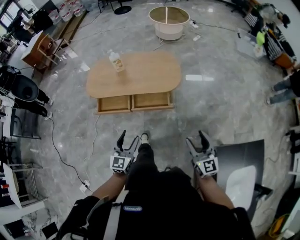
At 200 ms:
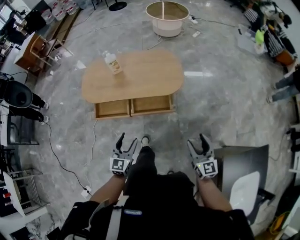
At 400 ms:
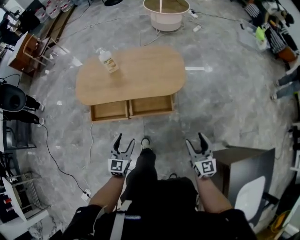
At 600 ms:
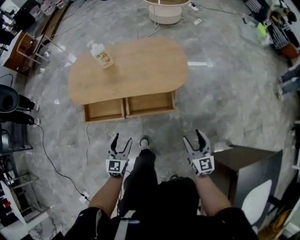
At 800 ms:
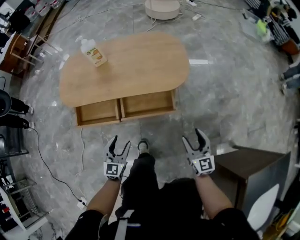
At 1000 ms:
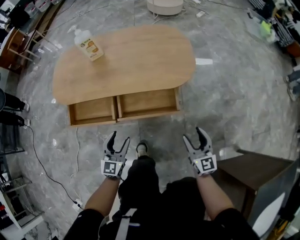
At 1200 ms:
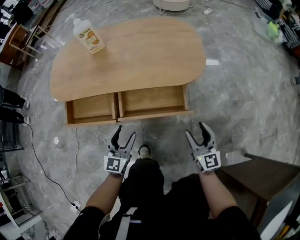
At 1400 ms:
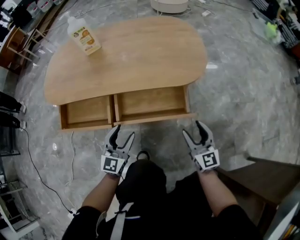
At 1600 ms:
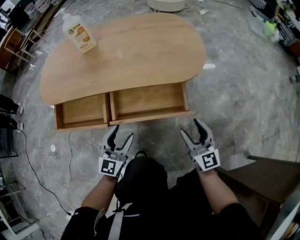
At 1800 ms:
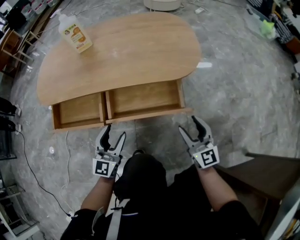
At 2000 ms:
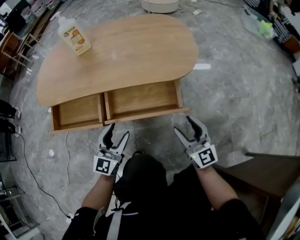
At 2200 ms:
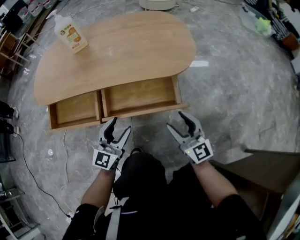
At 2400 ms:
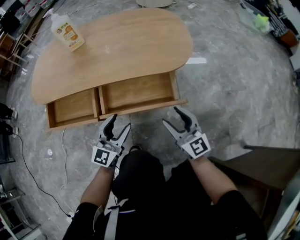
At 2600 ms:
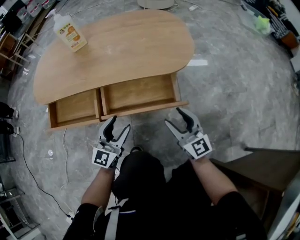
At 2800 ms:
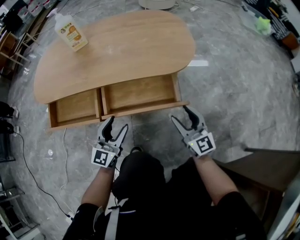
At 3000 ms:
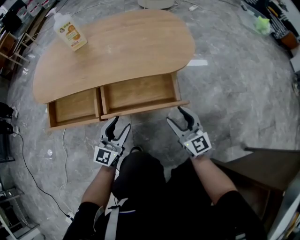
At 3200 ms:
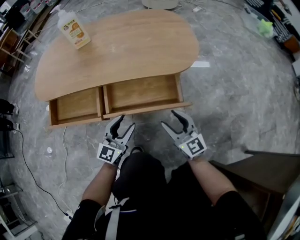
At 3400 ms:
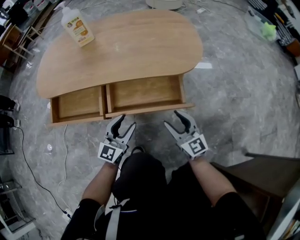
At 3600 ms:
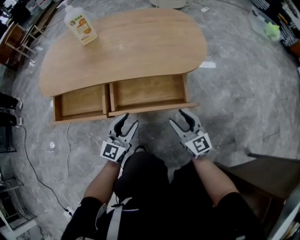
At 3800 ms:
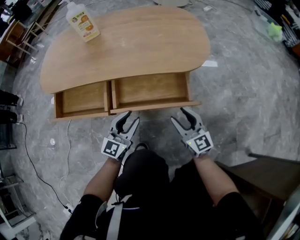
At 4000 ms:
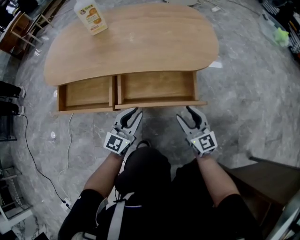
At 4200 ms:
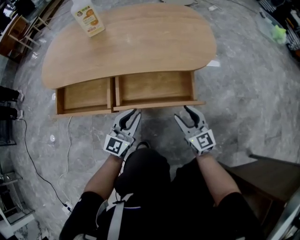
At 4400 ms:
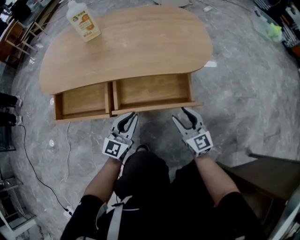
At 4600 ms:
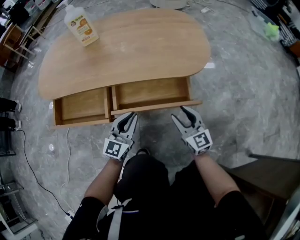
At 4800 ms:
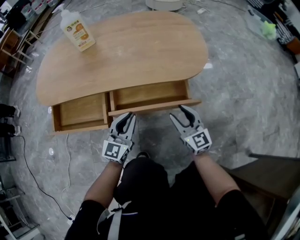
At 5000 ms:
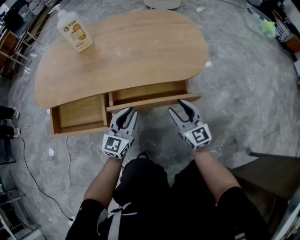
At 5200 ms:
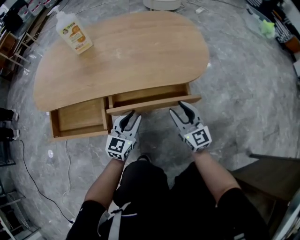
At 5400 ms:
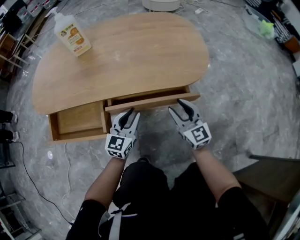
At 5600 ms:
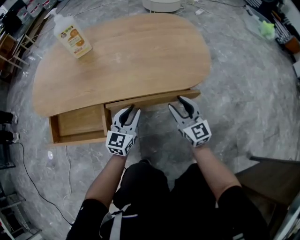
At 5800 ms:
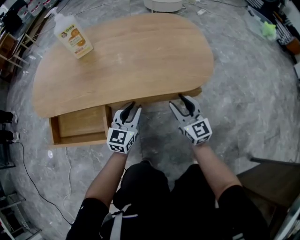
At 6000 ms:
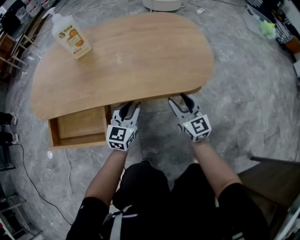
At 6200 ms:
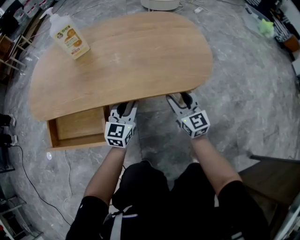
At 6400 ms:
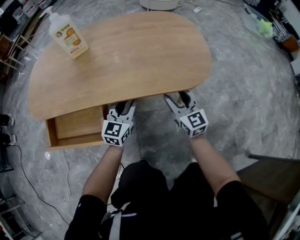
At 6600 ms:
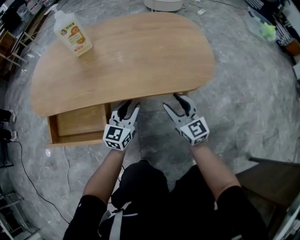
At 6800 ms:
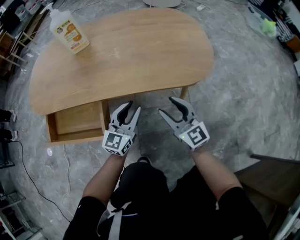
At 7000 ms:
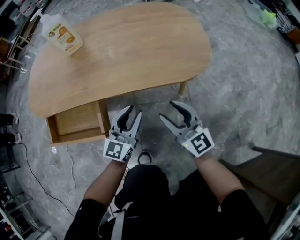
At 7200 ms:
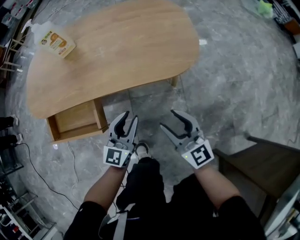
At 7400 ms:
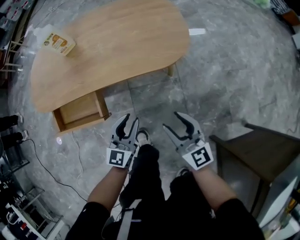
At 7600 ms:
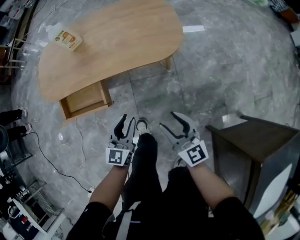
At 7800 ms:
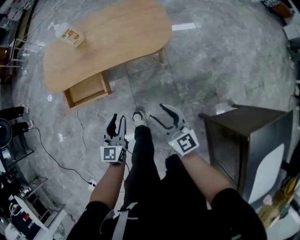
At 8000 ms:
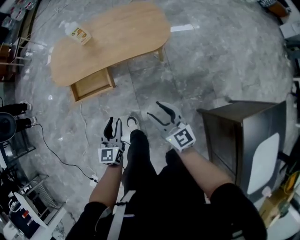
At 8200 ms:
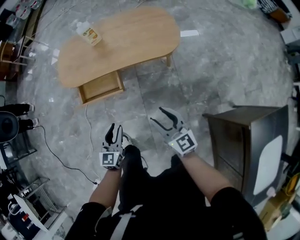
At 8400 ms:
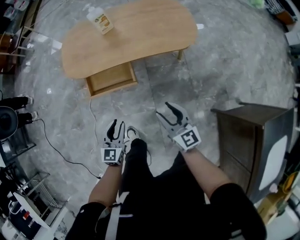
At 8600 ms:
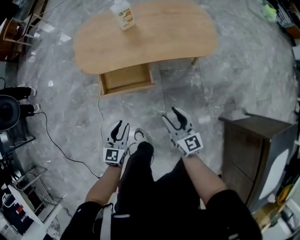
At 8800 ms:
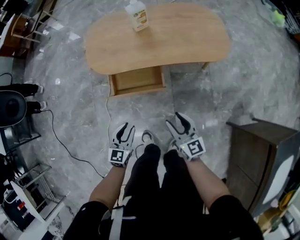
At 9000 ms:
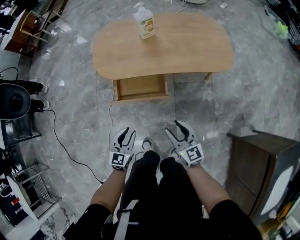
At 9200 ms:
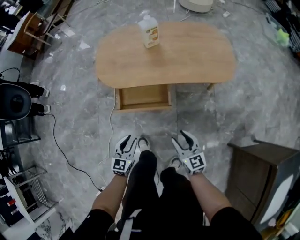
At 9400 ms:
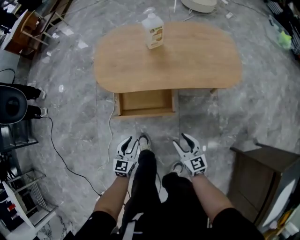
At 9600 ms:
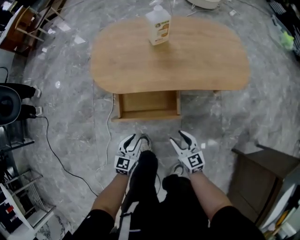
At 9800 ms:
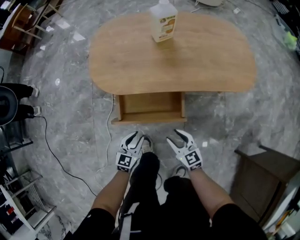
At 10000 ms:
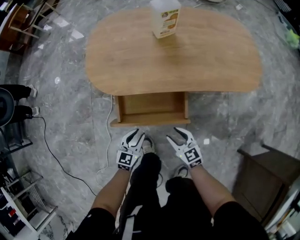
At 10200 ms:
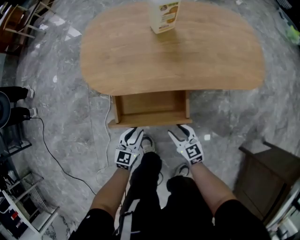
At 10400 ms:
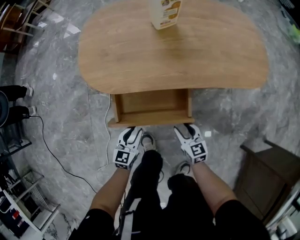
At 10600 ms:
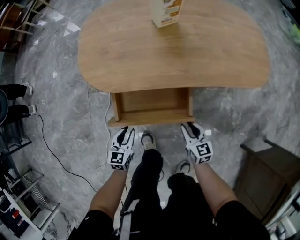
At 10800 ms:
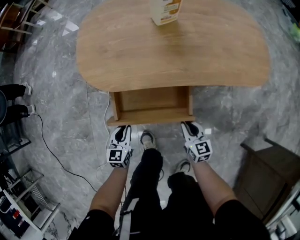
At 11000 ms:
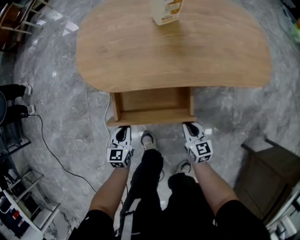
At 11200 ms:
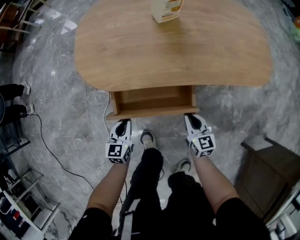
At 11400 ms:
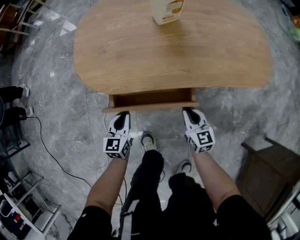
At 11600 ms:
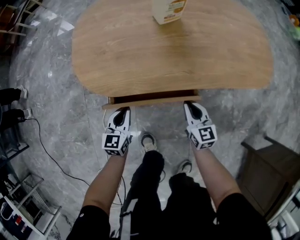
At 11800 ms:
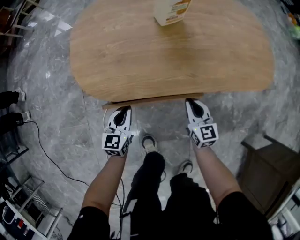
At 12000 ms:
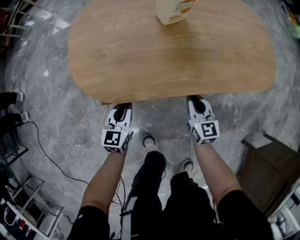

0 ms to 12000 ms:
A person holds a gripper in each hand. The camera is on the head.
0 ms to 1600 ms: The grippers both shift downward and forward by about 50 cm.
1600 ms to 3000 ms: There are only small adjustments of the grippers.
3000 ms to 4400 ms: The left gripper closes up; the right gripper is displaced downward by some 5 cm.
4400 ms to 6000 ms: The two grippers go approximately 15 cm forward.
6000 ms to 7600 ms: Both grippers travel together backward and upward, some 30 cm.
7600 ms to 9000 ms: The two grippers go some 35 cm to the left.
9000 ms to 10400 ms: Both grippers travel together downward and forward, about 30 cm. The right gripper swivels approximately 20 degrees.
10400 ms to 12000 ms: Both grippers move forward, about 15 cm. The left gripper closes up. Meanwhile the right gripper closes its fingers.

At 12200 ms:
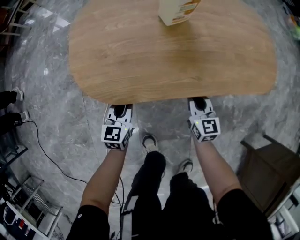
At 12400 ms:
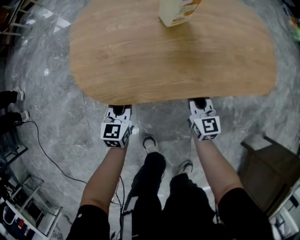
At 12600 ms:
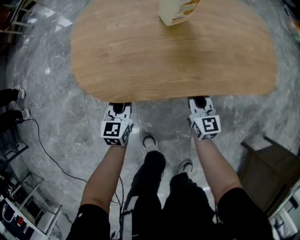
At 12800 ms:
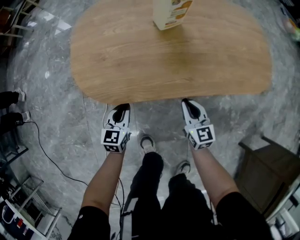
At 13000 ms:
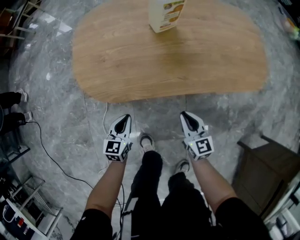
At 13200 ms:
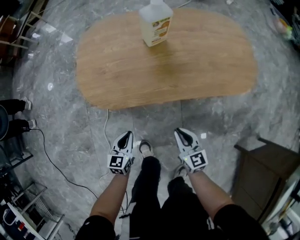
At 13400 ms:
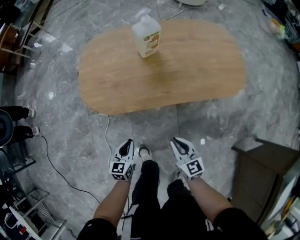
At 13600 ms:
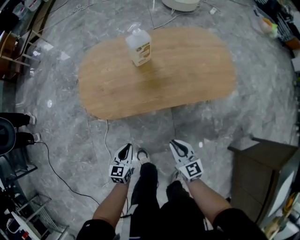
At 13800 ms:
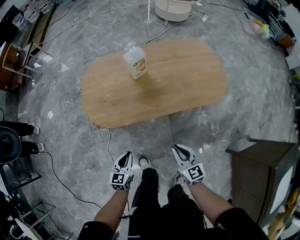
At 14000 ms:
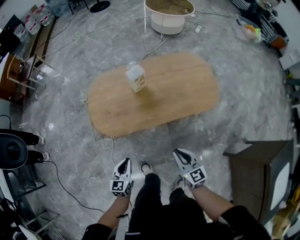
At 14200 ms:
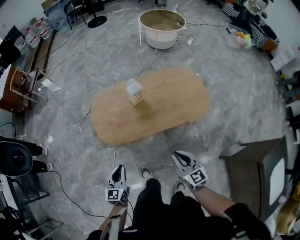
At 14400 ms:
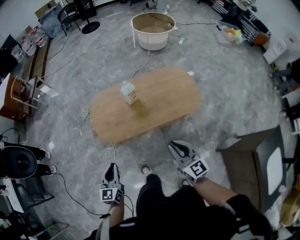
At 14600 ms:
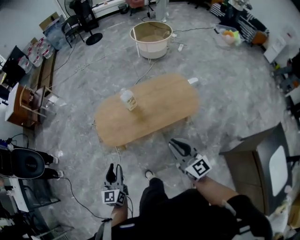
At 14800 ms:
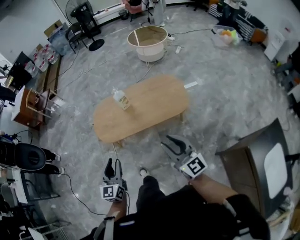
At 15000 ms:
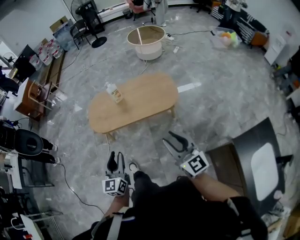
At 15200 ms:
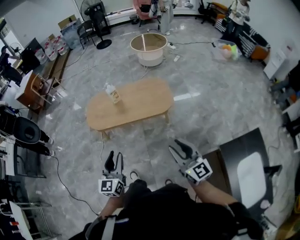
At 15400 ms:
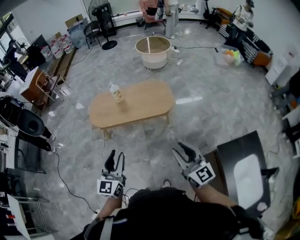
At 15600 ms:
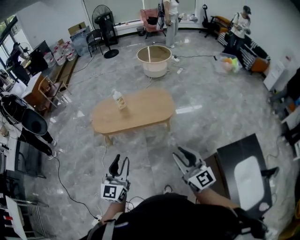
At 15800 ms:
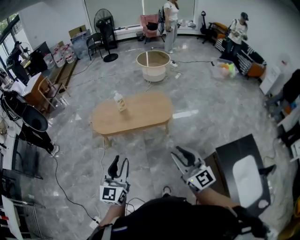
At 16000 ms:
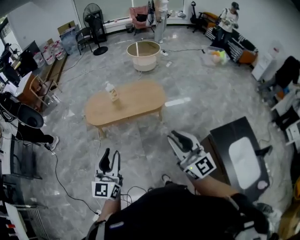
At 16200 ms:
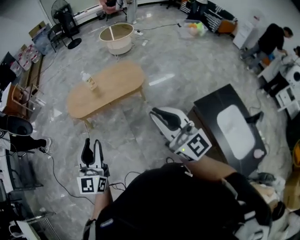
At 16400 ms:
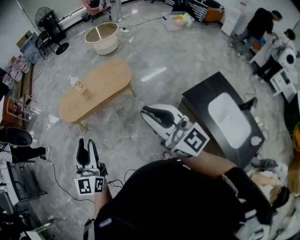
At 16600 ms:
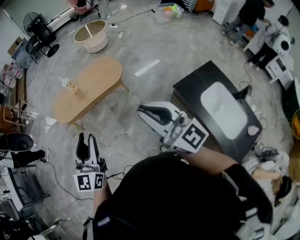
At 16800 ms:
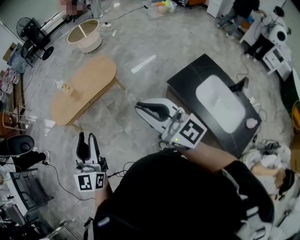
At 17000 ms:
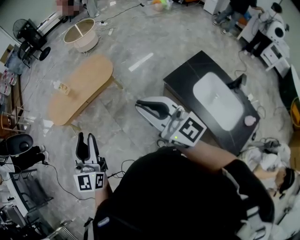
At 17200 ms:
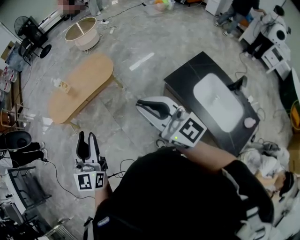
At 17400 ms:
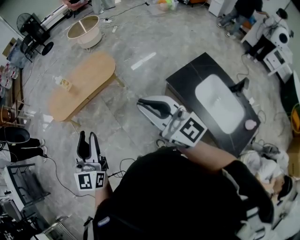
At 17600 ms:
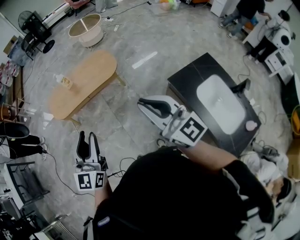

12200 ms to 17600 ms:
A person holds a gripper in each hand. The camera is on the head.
12200 ms to 13600 ms: Both grippers travel together backward and upward, approximately 25 cm.
13600 ms to 15000 ms: The left gripper travels upward and backward by approximately 50 cm, rotates approximately 30 degrees, and opens. Meanwhile the right gripper is displaced upward, to the right and backward by some 60 cm, points its fingers some 30 degrees further upward, and opens its fingers.
15000 ms to 16200 ms: The grippers both shift backward and upward by approximately 30 cm.
16200 ms to 17600 ms: Both grippers travel together to the right, roughly 15 cm.

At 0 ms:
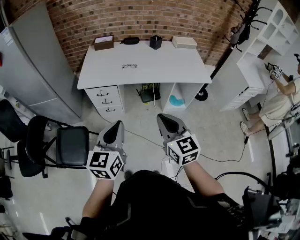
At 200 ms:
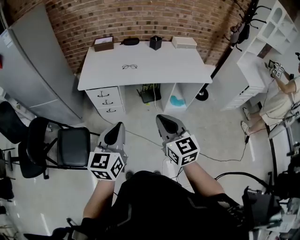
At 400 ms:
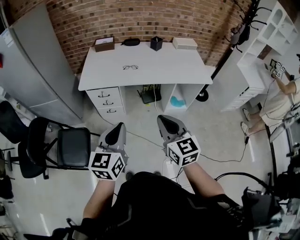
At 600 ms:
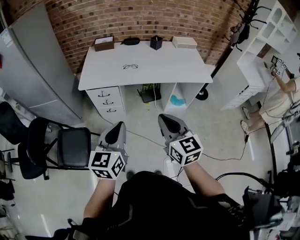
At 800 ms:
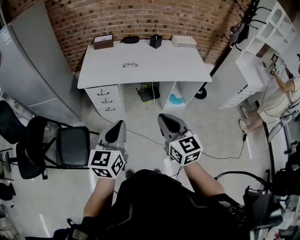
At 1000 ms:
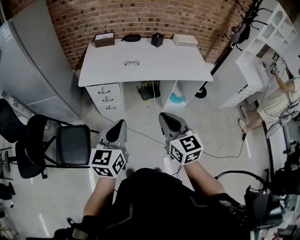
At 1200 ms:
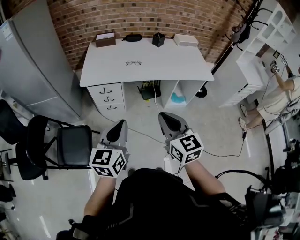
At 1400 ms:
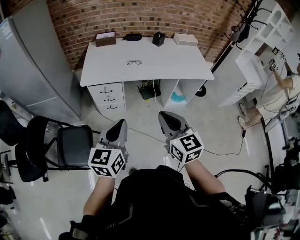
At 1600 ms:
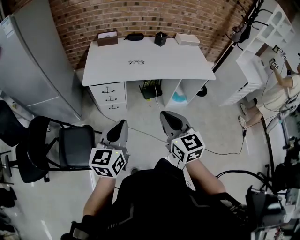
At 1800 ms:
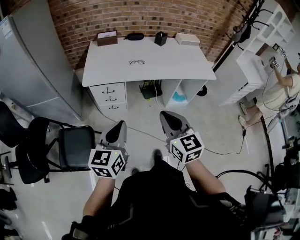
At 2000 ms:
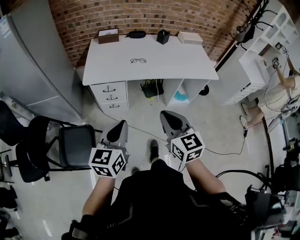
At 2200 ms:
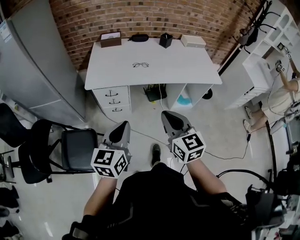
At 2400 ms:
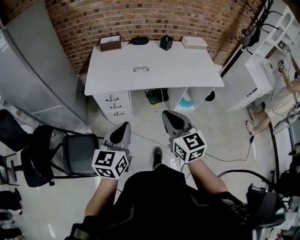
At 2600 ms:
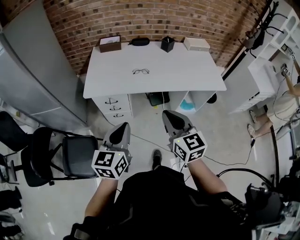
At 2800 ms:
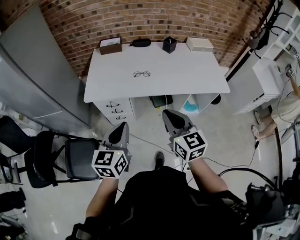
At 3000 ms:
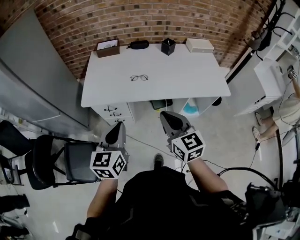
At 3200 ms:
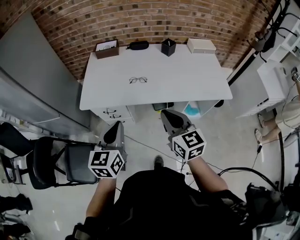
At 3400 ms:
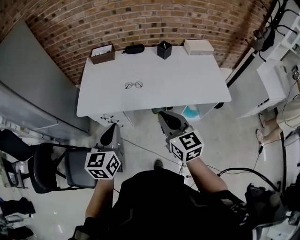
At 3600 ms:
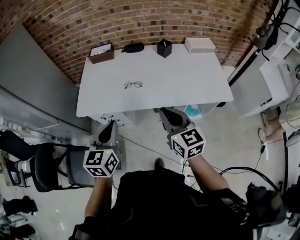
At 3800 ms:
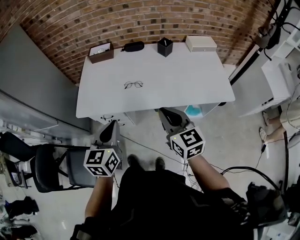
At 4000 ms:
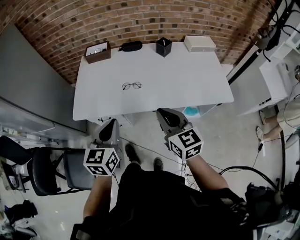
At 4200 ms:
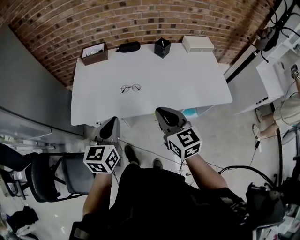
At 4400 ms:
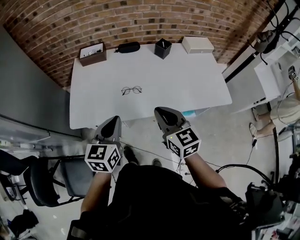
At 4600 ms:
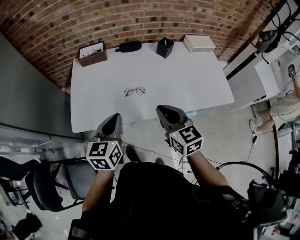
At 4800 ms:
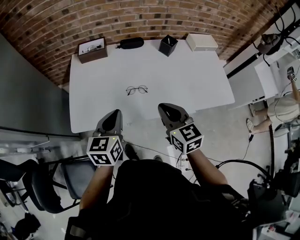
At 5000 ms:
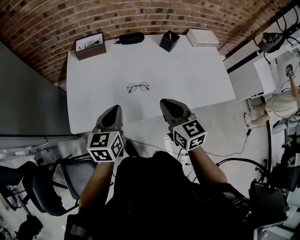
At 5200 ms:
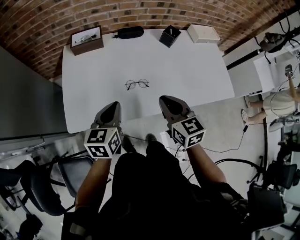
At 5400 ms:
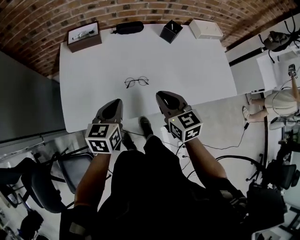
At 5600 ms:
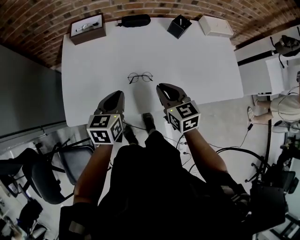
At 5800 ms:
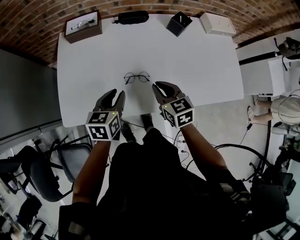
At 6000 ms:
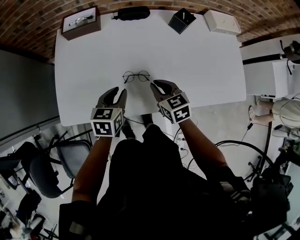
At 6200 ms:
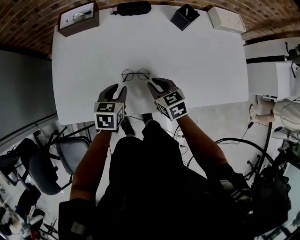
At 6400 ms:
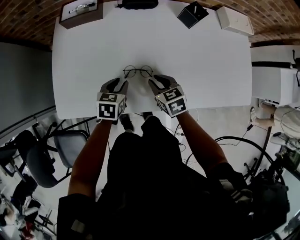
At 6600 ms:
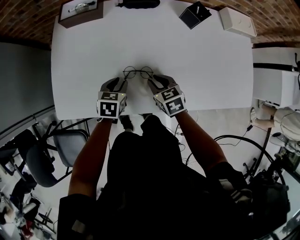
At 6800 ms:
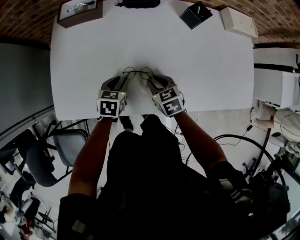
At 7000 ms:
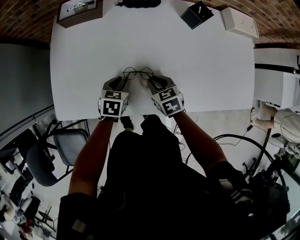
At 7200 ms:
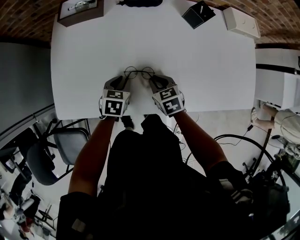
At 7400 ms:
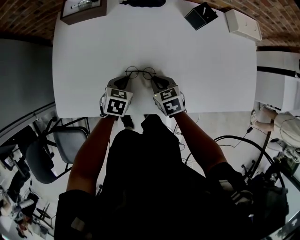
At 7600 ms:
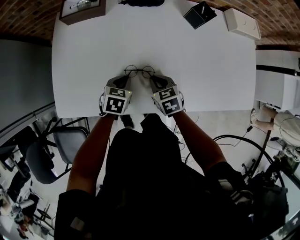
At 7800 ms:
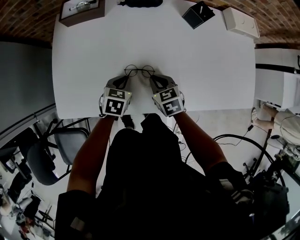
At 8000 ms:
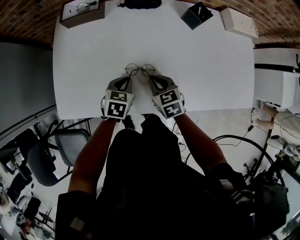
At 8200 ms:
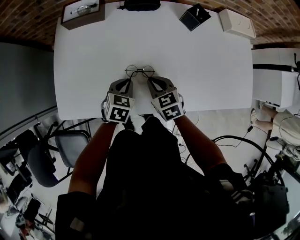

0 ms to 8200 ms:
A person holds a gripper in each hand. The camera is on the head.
0 ms to 1600 ms: Both grippers move to the left, roughly 10 cm.
1600 ms to 3200 ms: Both grippers travel together forward, approximately 25 cm.
3200 ms to 5000 ms: The two grippers go approximately 25 cm forward.
5000 ms to 6600 ms: The grippers both shift downward and forward by about 25 cm. The right gripper rotates about 30 degrees; the left gripper changes its angle by roughly 30 degrees, and opens.
6600 ms to 8200 ms: The left gripper closes up.
